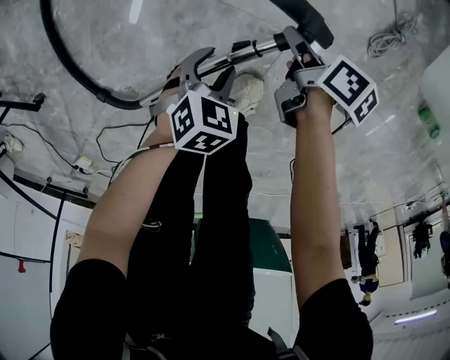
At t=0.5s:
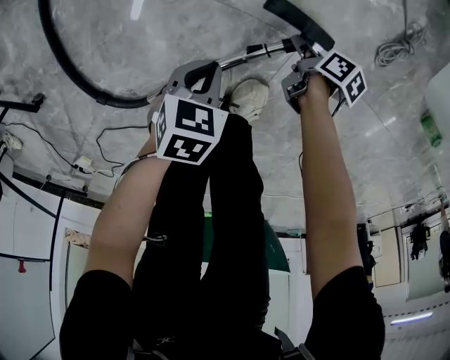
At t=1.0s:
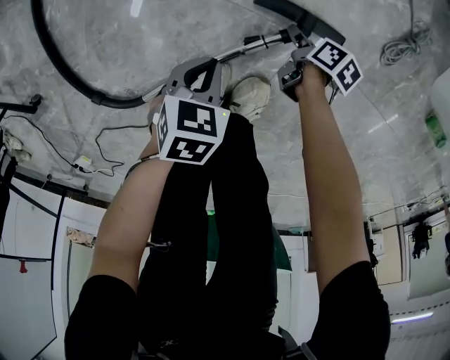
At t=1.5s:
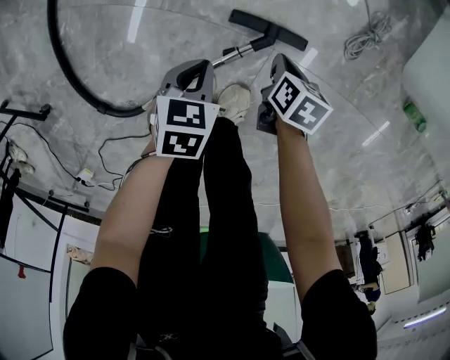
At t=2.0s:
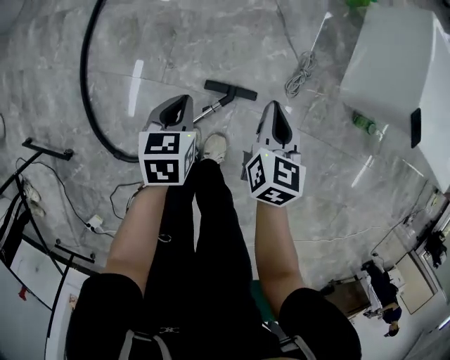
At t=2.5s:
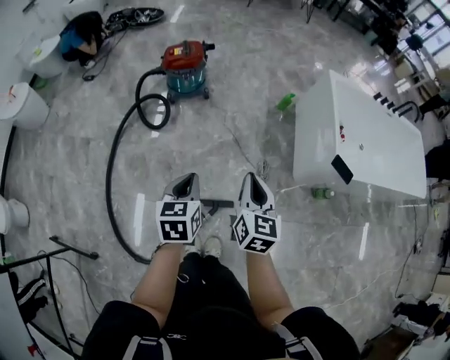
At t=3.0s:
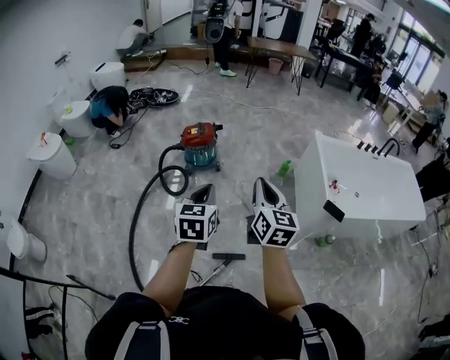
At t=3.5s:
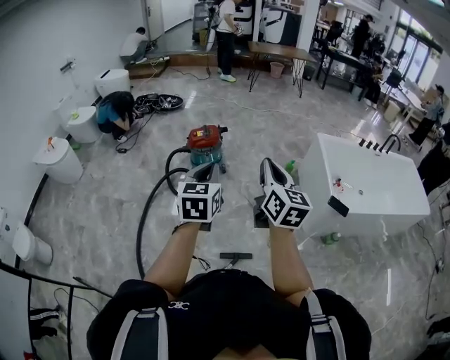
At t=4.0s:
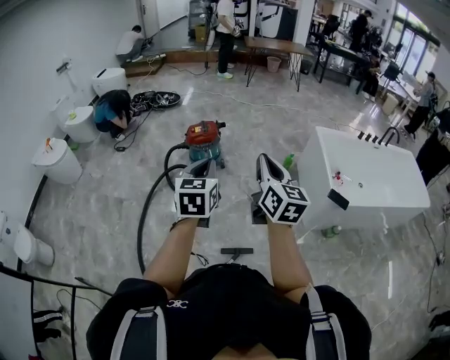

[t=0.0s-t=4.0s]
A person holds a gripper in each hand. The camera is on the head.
t=0.0s to t=2.0s: Both grippers travel together upward, approximately 40 cm. The right gripper changes its angle by approximately 60 degrees, and closes. The left gripper swivels approximately 30 degrees, and closes its fingers.
t=2.0s to t=4.0s: The two grippers go about 60 cm upward. The left gripper tilts its fingers roughly 40 degrees upward. The right gripper tips its fingers upward by approximately 40 degrees.

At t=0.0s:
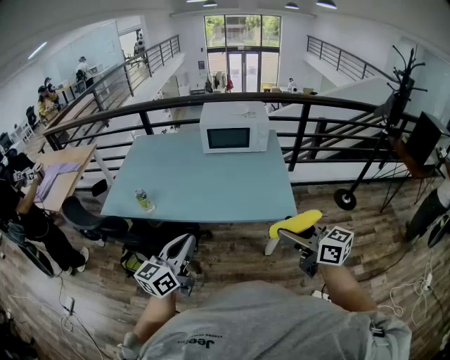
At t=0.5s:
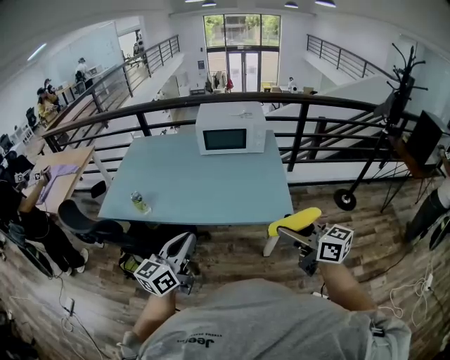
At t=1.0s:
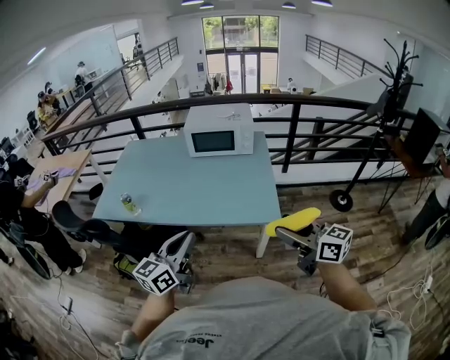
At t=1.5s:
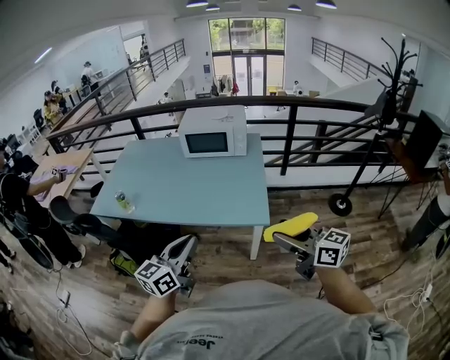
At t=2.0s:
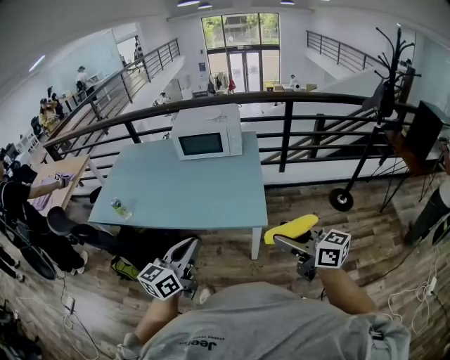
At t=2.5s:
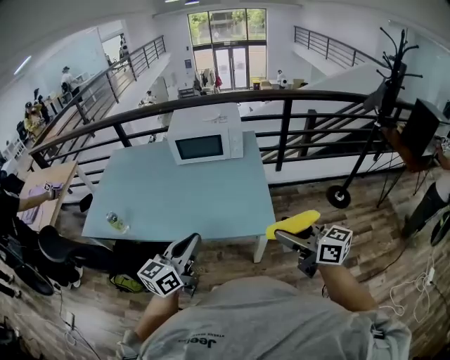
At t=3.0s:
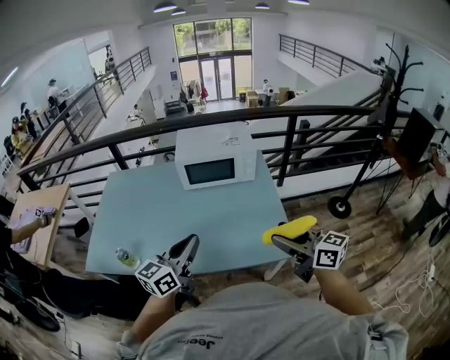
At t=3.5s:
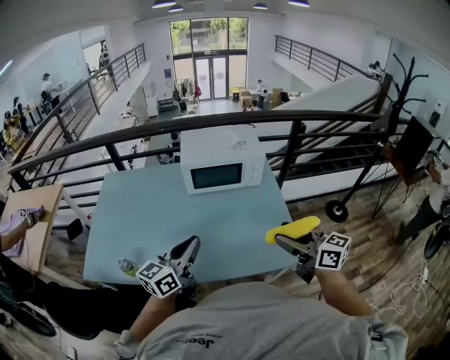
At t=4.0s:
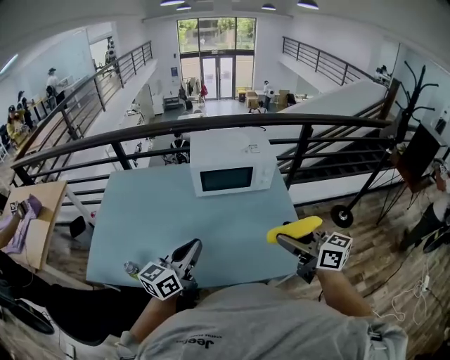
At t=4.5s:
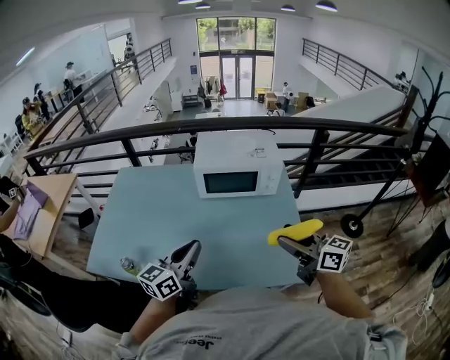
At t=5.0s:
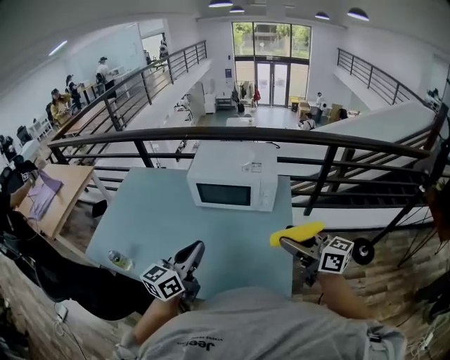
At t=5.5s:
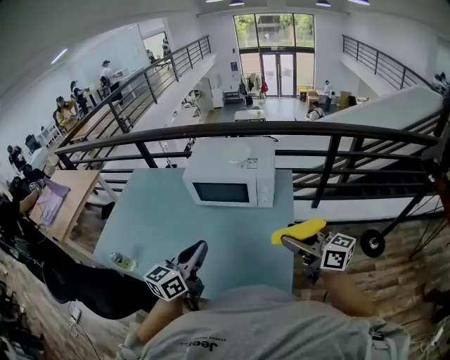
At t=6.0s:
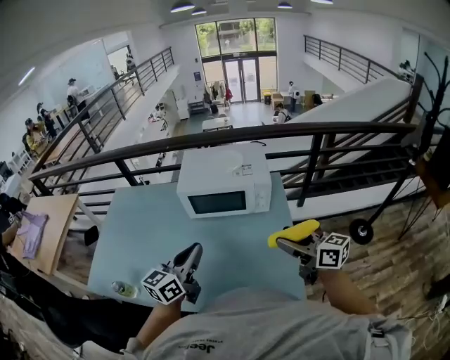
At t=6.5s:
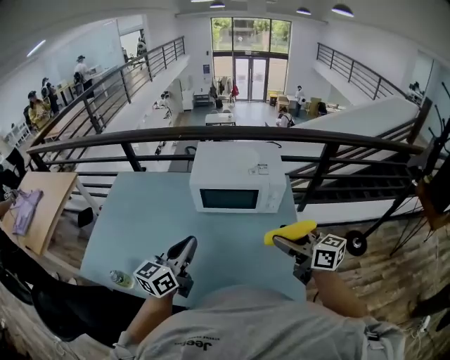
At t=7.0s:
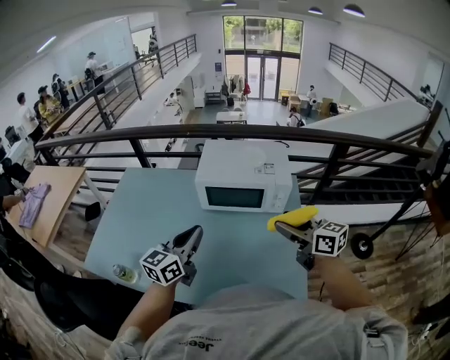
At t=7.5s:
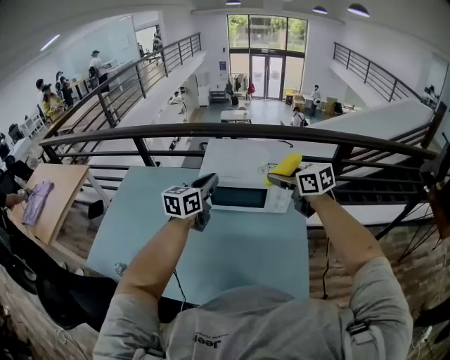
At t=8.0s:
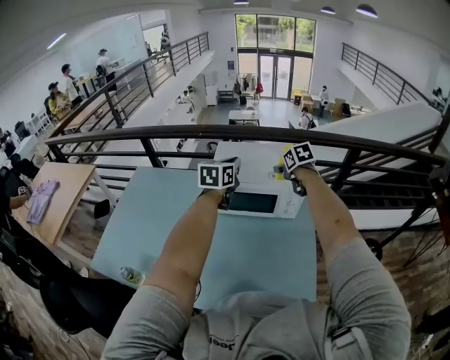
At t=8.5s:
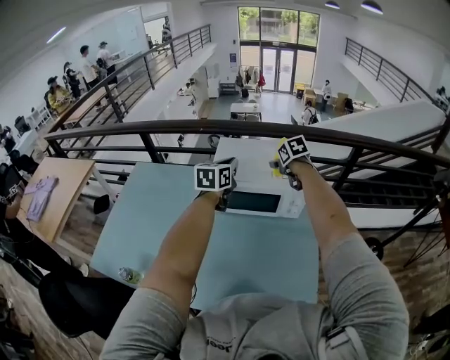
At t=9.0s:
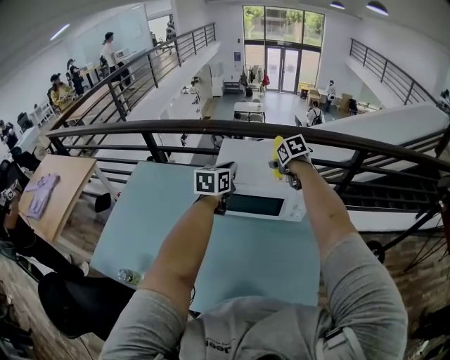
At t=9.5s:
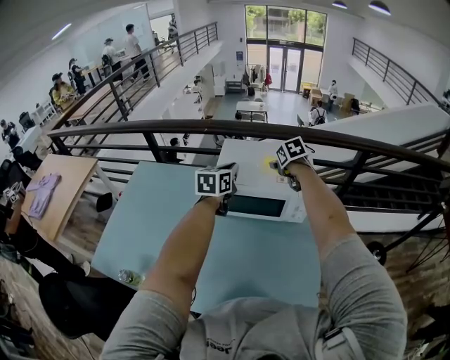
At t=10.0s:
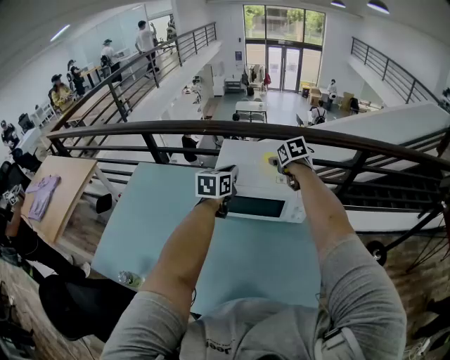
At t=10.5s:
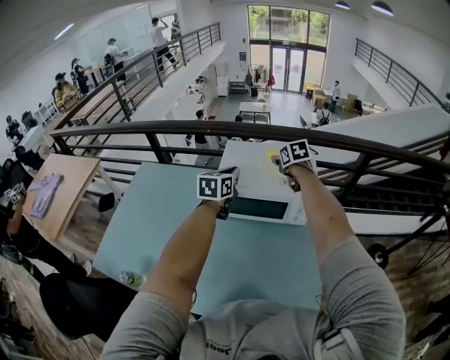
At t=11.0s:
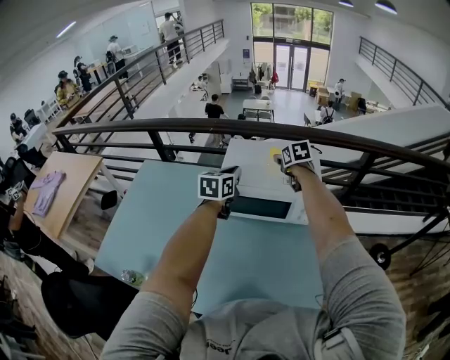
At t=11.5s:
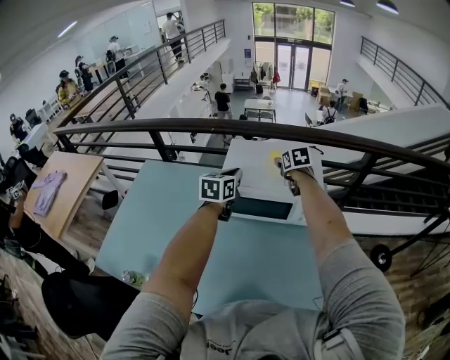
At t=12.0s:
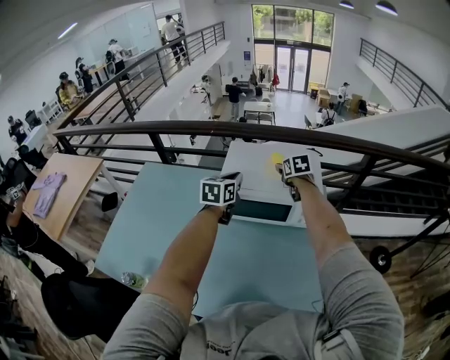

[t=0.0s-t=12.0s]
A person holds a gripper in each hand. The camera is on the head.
t=0.0s to t=2.0s: Both grippers travel together to the right, roughly 20 cm.
t=2.0s to t=4.0s: The grippers both shift forward and to the left by roughly 40 cm.
t=4.0s to t=6.0s: Both grippers move to the right and forward, some 15 cm.
t=6.0s to t=8.0s: The grippers both shift forward by approximately 35 cm. The right gripper tilts its fingers approximately 40 degrees downward. The left gripper changes its angle by approximately 20 degrees.
t=8.0s to t=10.0s: The left gripper is displaced downward by some 5 cm; the right gripper heads forward, covering approximately 5 cm.
t=10.0s to t=12.0s: The grippers stay close to where they were, moving slightly.

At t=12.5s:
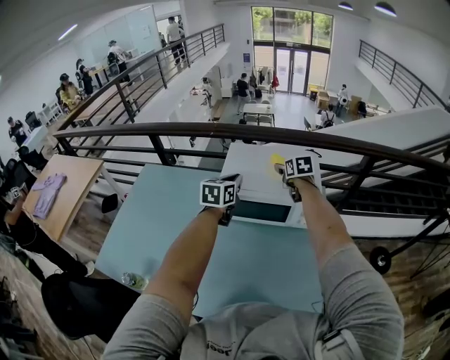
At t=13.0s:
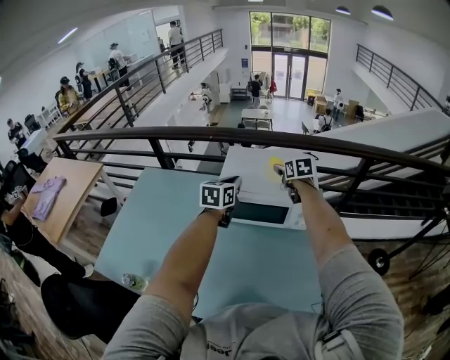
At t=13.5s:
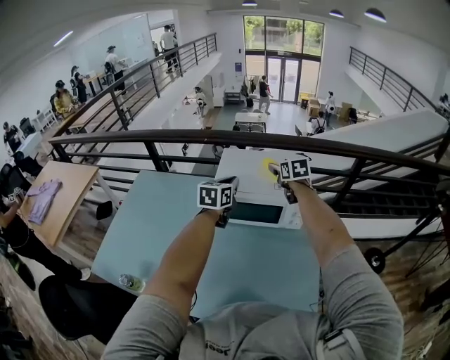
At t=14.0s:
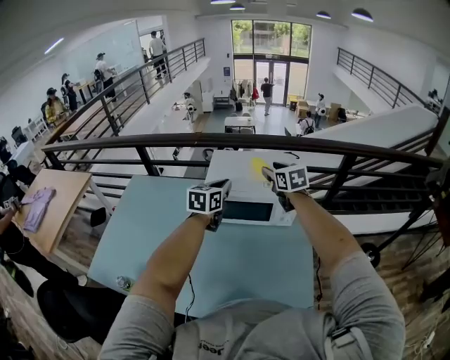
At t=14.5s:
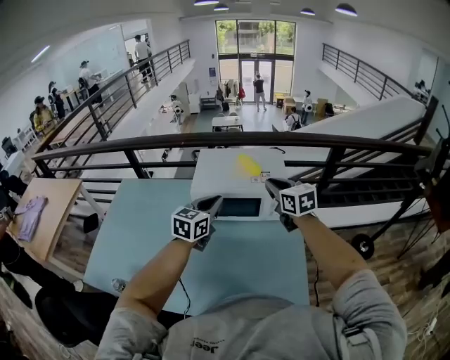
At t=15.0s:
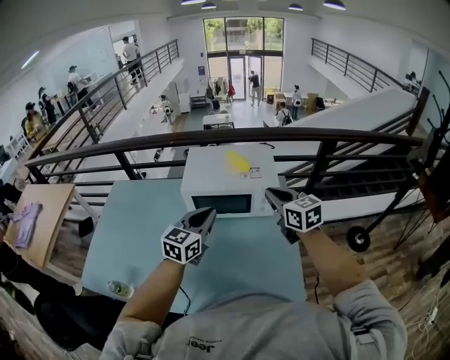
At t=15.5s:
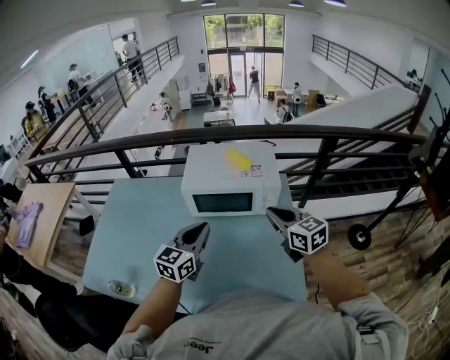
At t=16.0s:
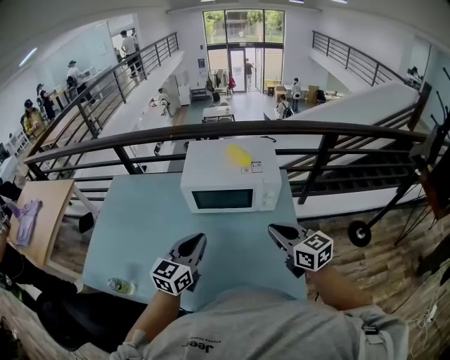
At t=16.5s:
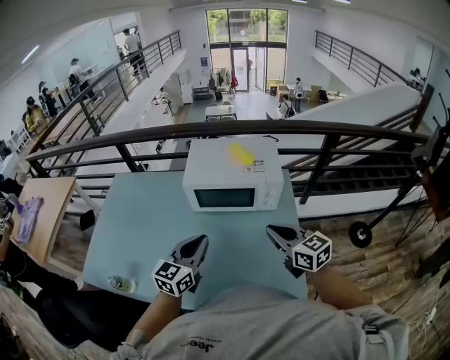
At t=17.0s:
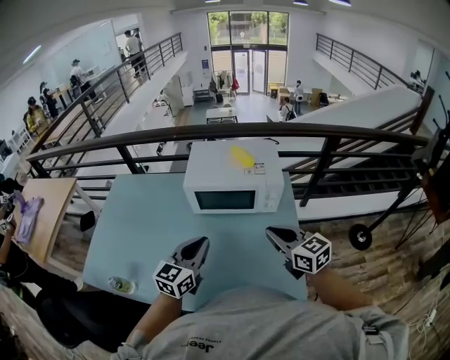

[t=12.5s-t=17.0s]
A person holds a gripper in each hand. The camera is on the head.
t=12.5s to t=14.5s: The right gripper is displaced backward and upward by approximately 20 cm, and closes. Meanwhile the left gripper is displaced backward by some 15 cm.
t=14.5s to t=17.0s: Both grippers travel together backward, some 15 cm.

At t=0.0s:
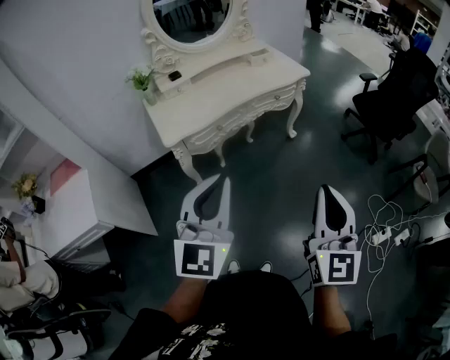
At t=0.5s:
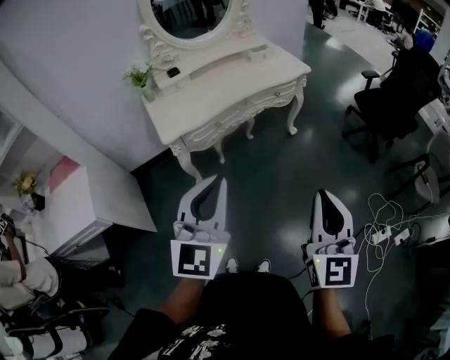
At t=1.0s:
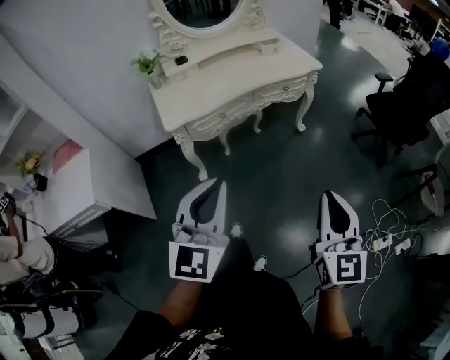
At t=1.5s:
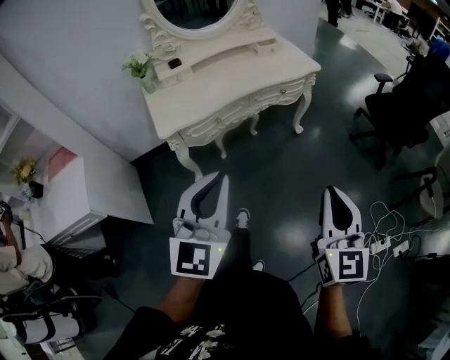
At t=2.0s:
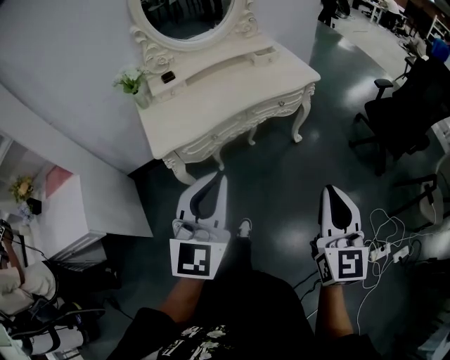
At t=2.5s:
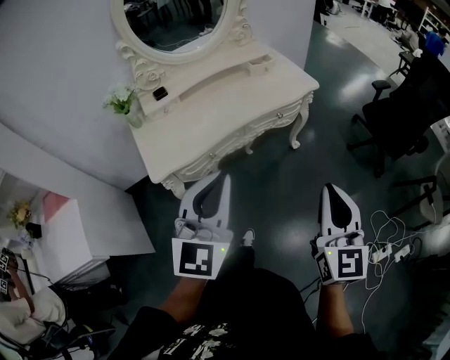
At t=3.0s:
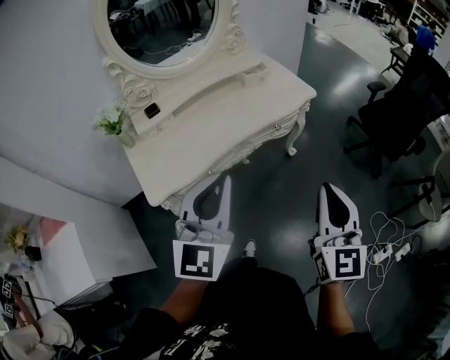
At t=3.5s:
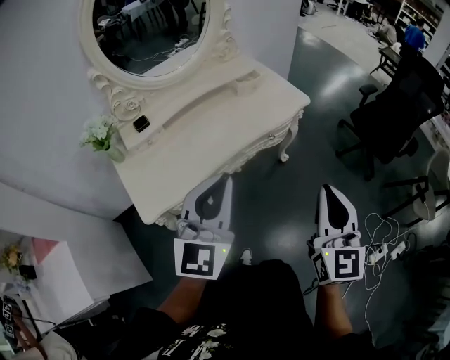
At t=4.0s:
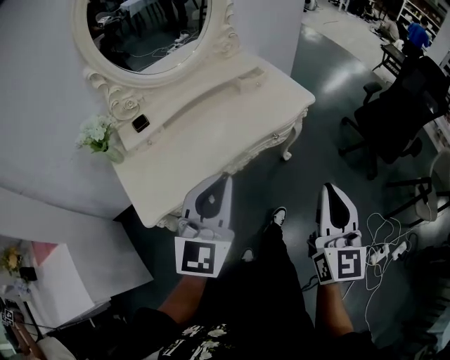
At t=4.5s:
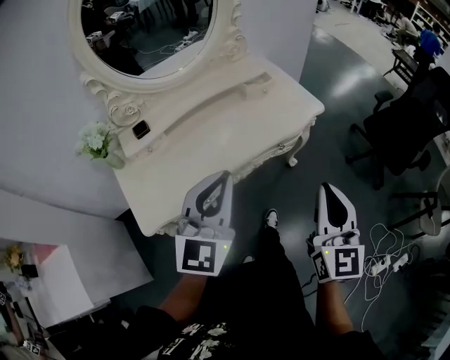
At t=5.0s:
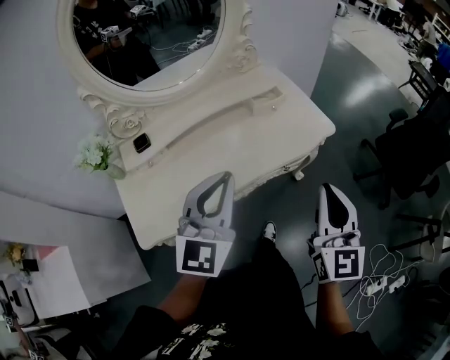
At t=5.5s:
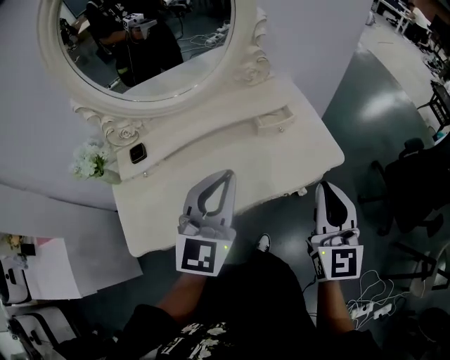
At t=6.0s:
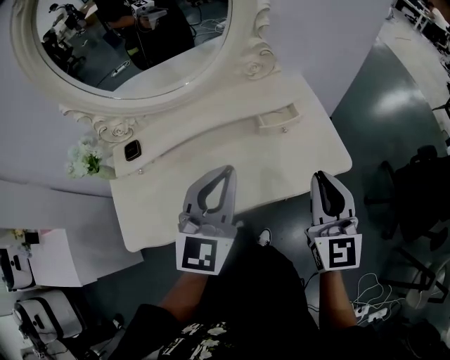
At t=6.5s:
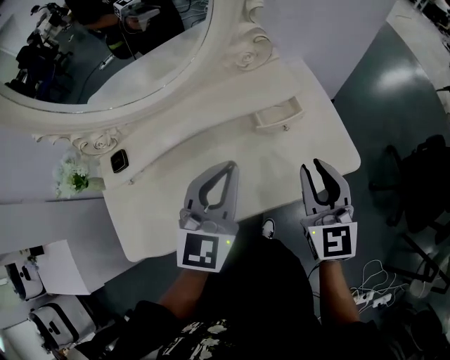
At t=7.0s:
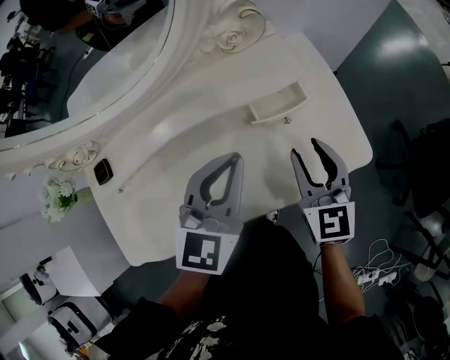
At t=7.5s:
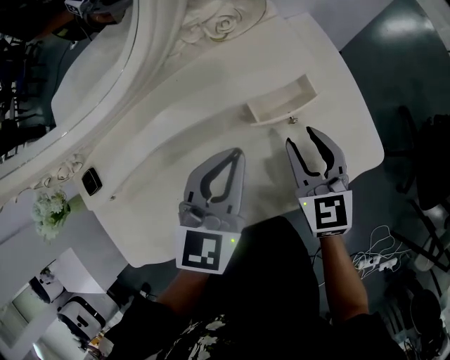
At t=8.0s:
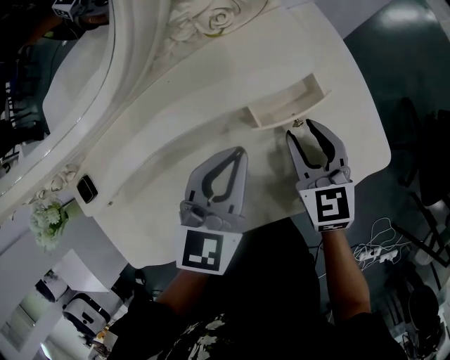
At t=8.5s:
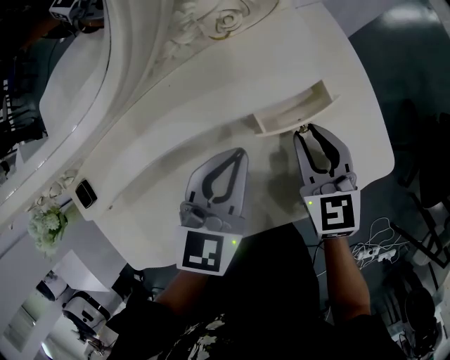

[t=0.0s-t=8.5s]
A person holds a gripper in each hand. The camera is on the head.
t=0.0s to t=2.0s: The two grippers go about 15 cm forward.
t=2.0s to t=4.0s: Both grippers move forward, roughly 20 cm.
t=4.0s to t=6.5s: Both grippers travel together forward, roughly 40 cm. The right gripper turns by approximately 30 degrees.
t=6.5s to t=8.5s: The grippers both shift downward and forward by roughly 20 cm.
